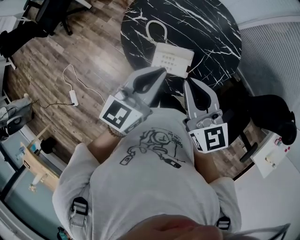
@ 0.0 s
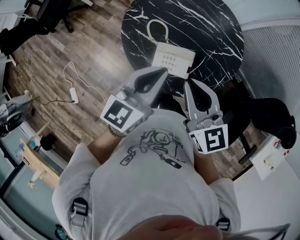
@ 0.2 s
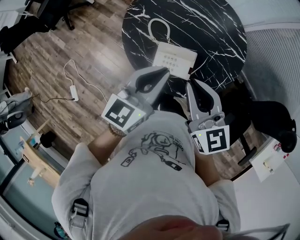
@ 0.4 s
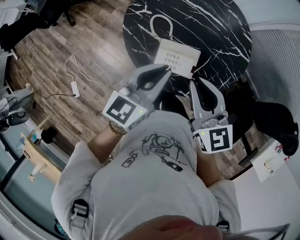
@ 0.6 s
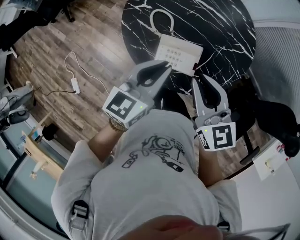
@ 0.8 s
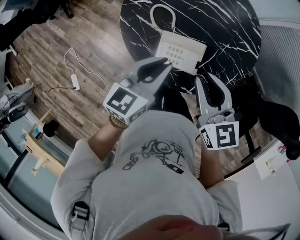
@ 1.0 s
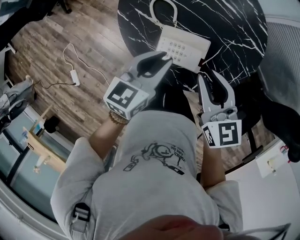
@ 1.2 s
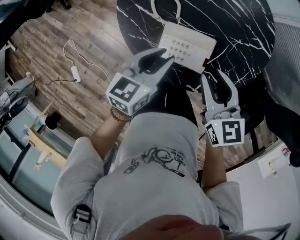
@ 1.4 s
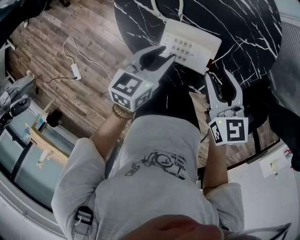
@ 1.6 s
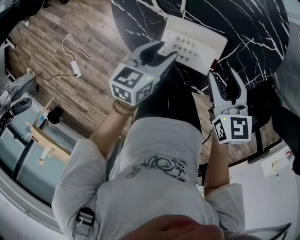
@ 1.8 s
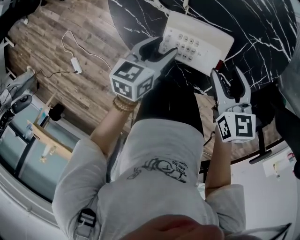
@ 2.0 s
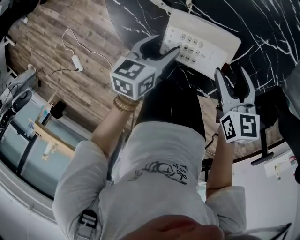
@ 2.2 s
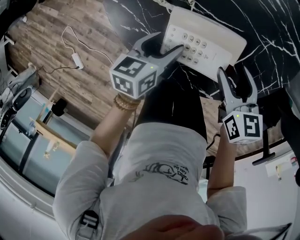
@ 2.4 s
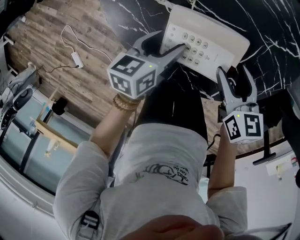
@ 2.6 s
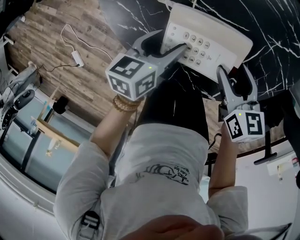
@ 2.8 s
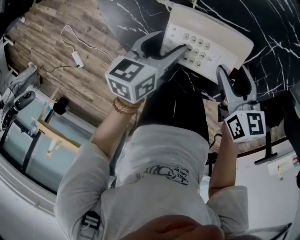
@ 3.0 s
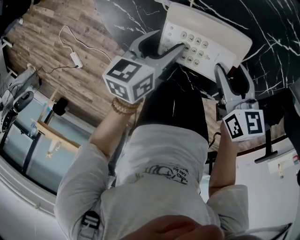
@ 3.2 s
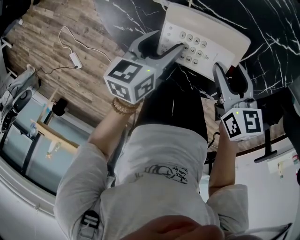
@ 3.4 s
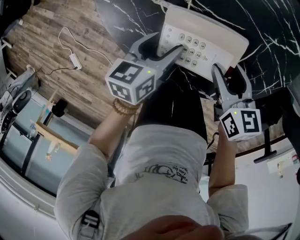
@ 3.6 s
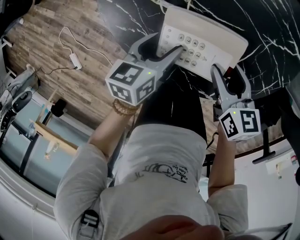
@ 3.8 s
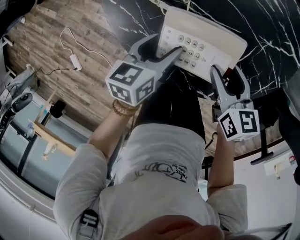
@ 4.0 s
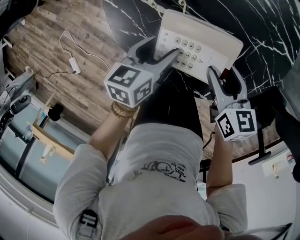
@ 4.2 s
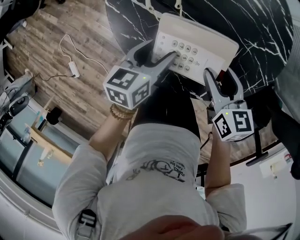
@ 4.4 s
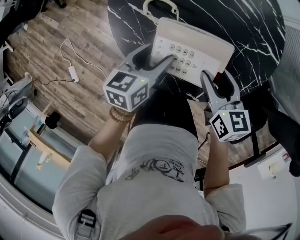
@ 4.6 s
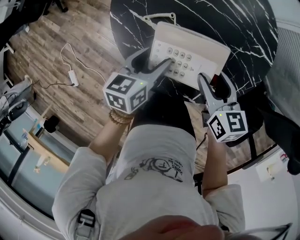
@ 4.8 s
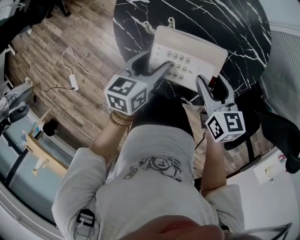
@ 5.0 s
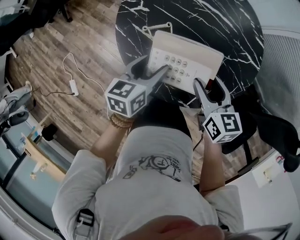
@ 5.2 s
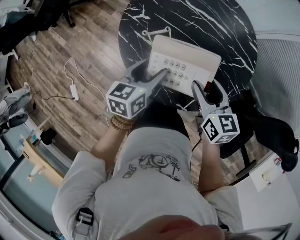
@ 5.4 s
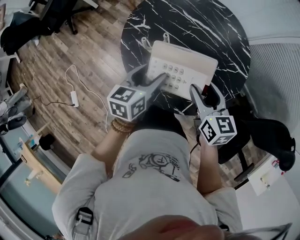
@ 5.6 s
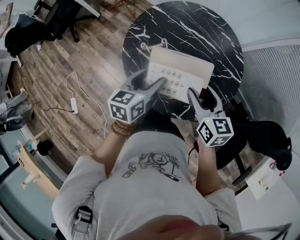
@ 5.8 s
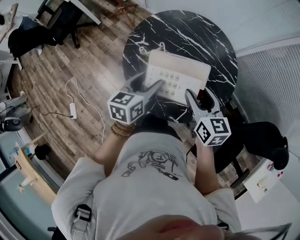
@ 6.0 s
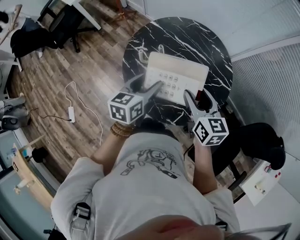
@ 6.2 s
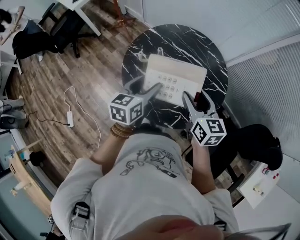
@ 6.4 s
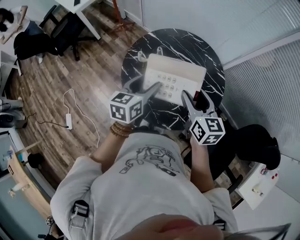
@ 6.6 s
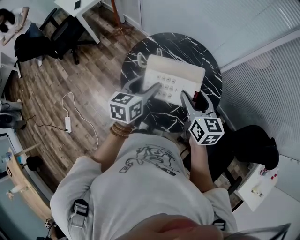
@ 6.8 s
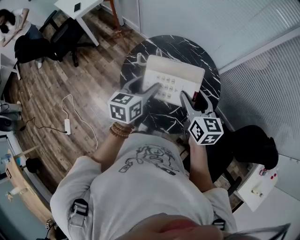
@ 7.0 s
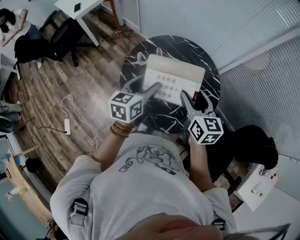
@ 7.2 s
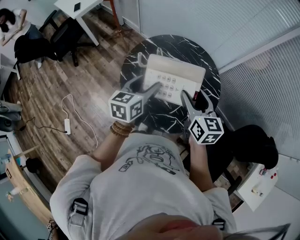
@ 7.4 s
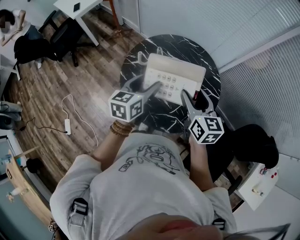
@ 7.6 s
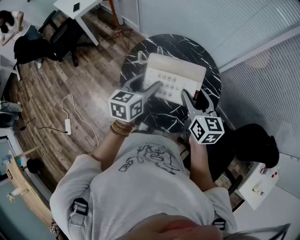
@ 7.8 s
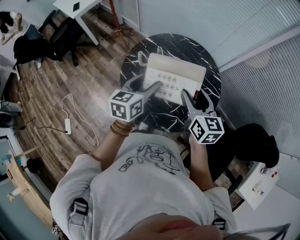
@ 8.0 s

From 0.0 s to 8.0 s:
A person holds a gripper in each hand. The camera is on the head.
From 0.0 s to 1.6 s: Both grippers move downward, roughly 25 cm. The right gripper swivels some 20 degrees, and opens up. The left gripper changes its angle by approximately 30 degrees, and opens up.
From 1.6 s to 3.2 s: The two grippers go approximately 15 cm downward. The left gripper opens.
From 3.2 s to 4.8 s: The two grippers go roughly 15 cm upward.
From 4.8 s to 6.4 s: Both grippers travel together upward, some 25 cm.
From 6.4 s to 8.0 s: The right gripper moves upward, about 5 cm.

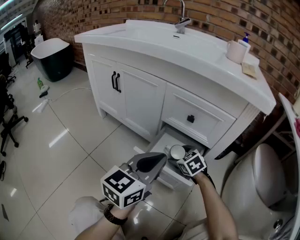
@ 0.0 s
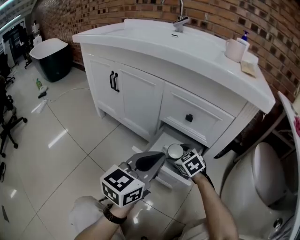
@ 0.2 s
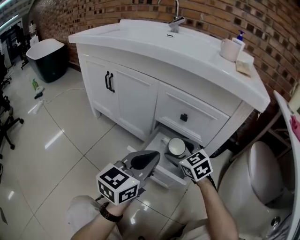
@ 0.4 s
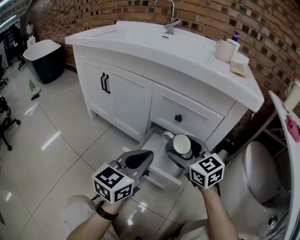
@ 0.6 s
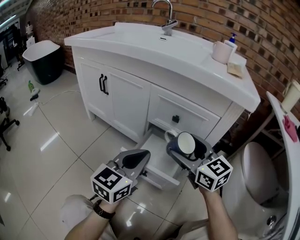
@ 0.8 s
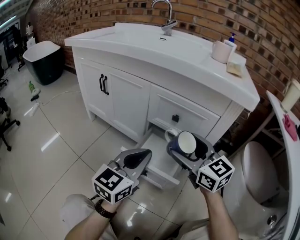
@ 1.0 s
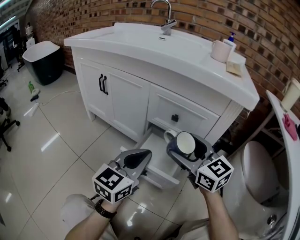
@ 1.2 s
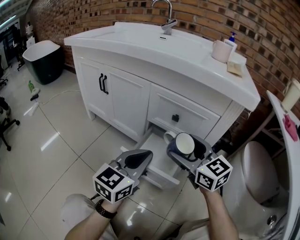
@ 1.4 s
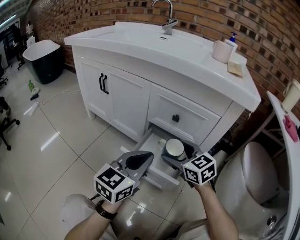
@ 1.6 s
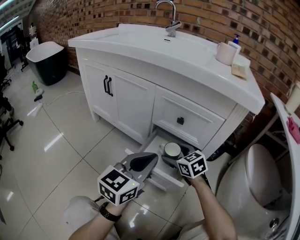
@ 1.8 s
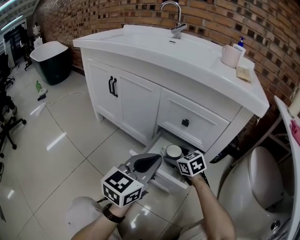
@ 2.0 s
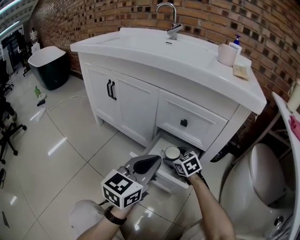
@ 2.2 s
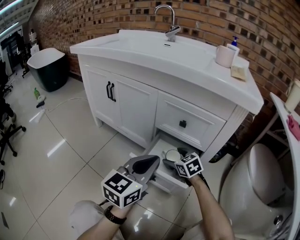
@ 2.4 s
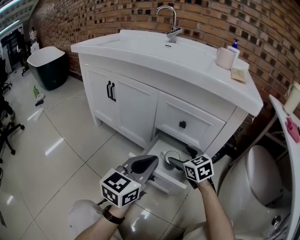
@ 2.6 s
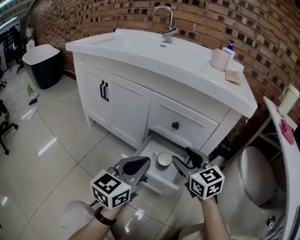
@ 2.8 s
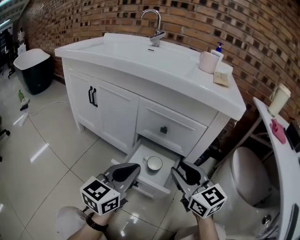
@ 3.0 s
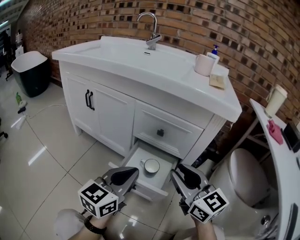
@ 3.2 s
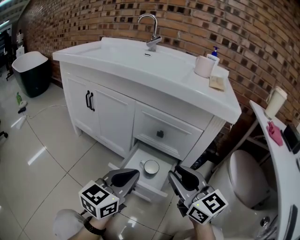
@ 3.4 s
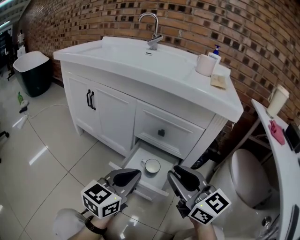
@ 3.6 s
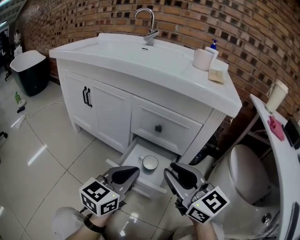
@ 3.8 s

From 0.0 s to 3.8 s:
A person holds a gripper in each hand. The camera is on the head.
From 0.0 s to 1.2 s: The right gripper goes some 25 cm upward, and tips its fingers upward by about 40 degrees.
From 1.2 s to 2.6 s: The right gripper goes some 15 cm downward and forward, and rotates about 20 degrees.
From 2.6 s to 3.8 s: The right gripper travels upward and backward by about 20 cm, tips its fingers upward by some 30 degrees, and closes.

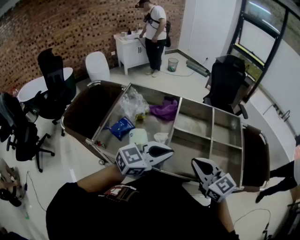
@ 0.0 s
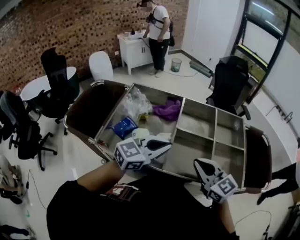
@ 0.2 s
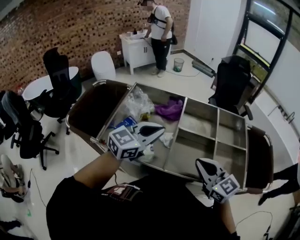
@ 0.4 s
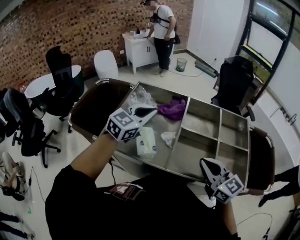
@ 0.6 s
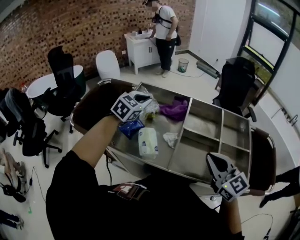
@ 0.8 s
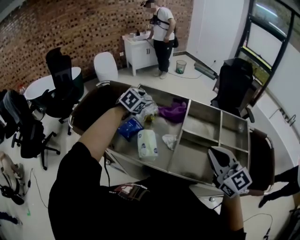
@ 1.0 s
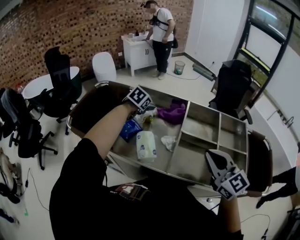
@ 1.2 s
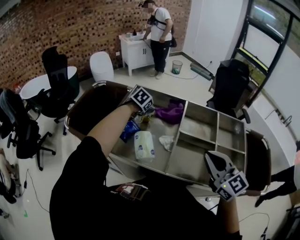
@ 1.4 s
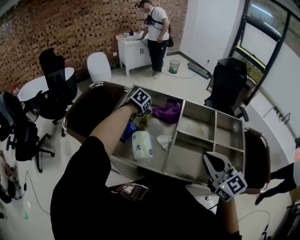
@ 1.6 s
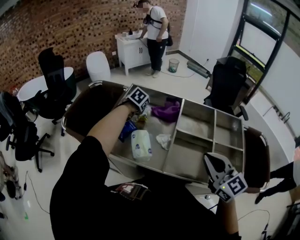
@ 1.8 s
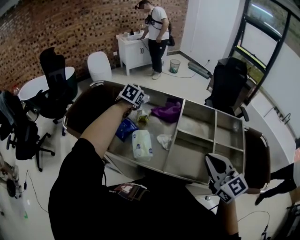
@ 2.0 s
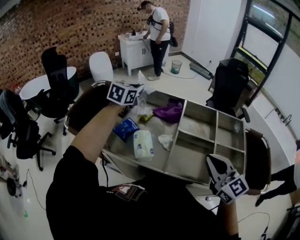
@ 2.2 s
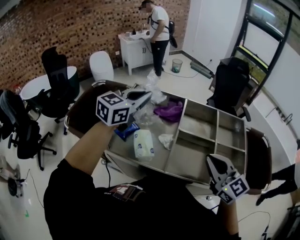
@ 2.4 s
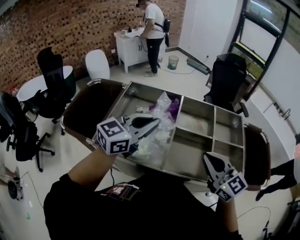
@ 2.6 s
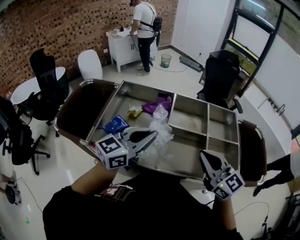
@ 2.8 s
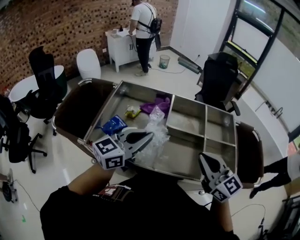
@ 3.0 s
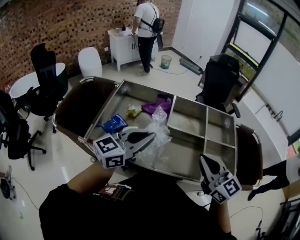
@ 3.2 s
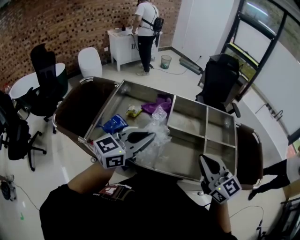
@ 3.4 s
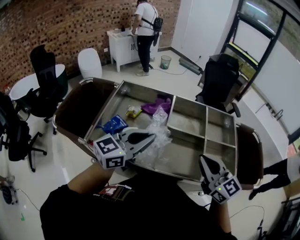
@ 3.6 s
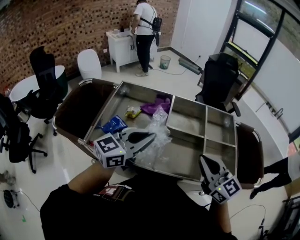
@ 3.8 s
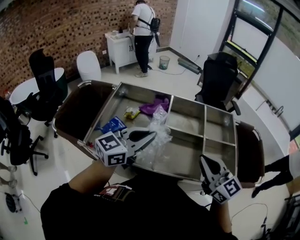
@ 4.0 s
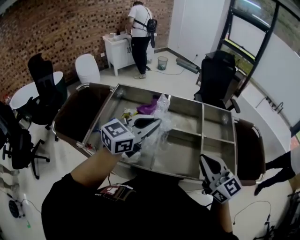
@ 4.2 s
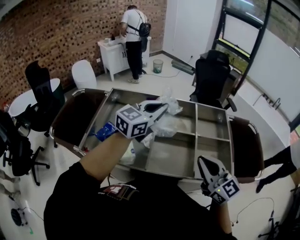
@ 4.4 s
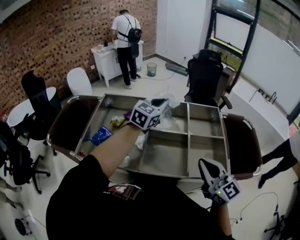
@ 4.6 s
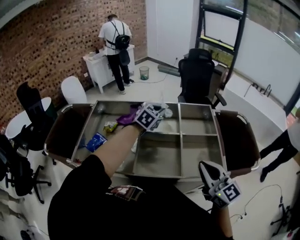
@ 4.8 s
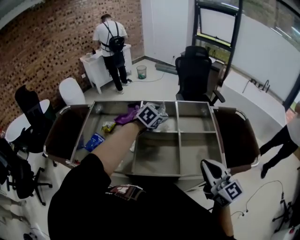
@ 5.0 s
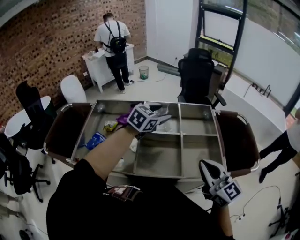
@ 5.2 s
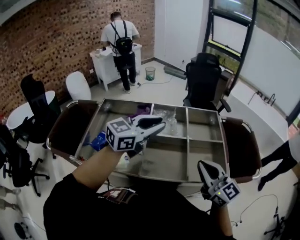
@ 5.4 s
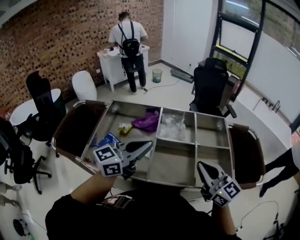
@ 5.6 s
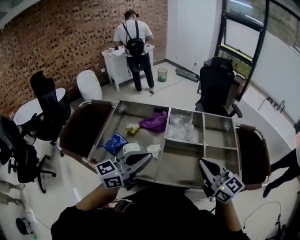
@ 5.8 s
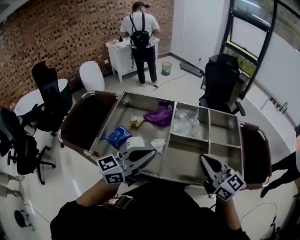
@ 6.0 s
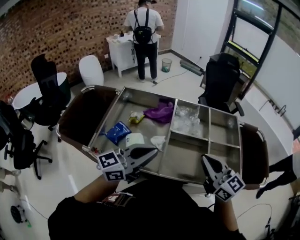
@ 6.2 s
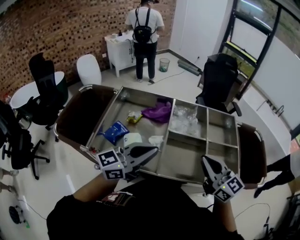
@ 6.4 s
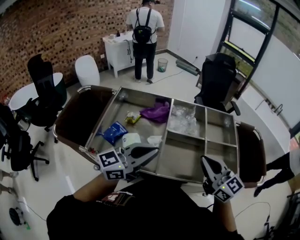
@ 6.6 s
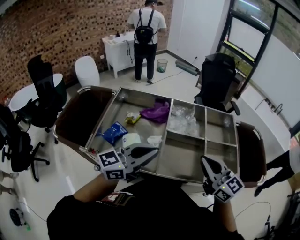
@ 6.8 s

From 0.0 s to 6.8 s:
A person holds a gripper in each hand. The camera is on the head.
From 0.0 s to 1.4 s: The left gripper travels forward and to the left by roughly 35 cm, tilts its fingers roughly 50 degrees downward, and opens its fingers; the right gripper is displaced upward by roughly 5 cm.
From 1.4 s to 2.8 s: The left gripper goes some 30 cm backward and upward, points its fingers some 60 degrees further upward, and closes up.
From 2.8 s to 4.0 s: The grippers stay close to where they were, moving slightly.
From 4.0 s to 5.4 s: Both grippers move to the right, roughly 10 cm. The left gripper travels forward and back again, about 25 cm each way, and opens, then closes once more.
From 5.4 s to 6.8 s: The right gripper heads to the left, covering some 5 cm. Meanwhile the left gripper goes approximately 15 cm backward and to the left.

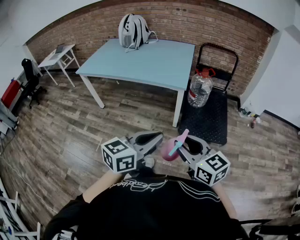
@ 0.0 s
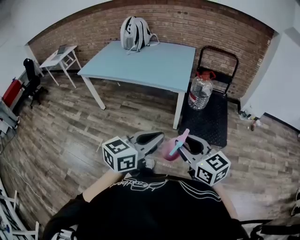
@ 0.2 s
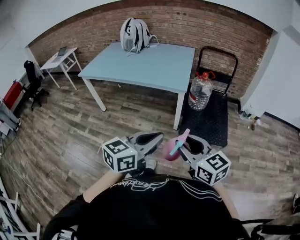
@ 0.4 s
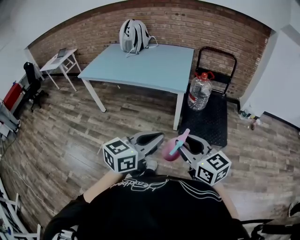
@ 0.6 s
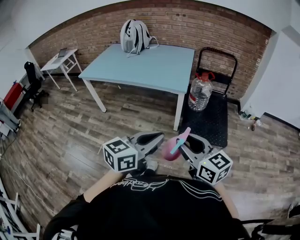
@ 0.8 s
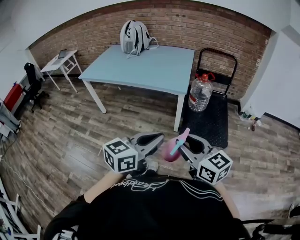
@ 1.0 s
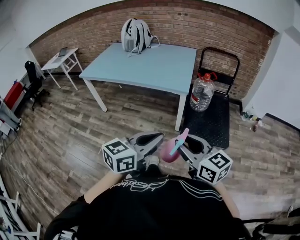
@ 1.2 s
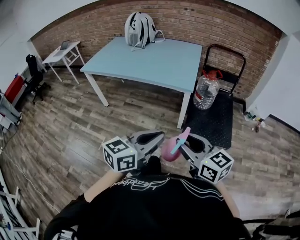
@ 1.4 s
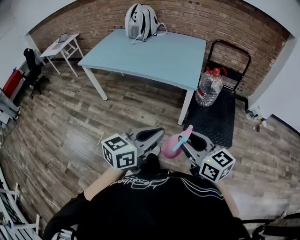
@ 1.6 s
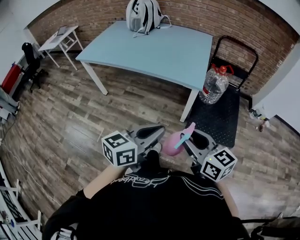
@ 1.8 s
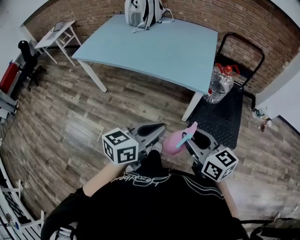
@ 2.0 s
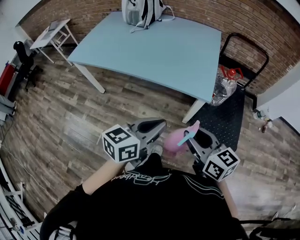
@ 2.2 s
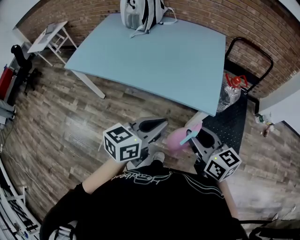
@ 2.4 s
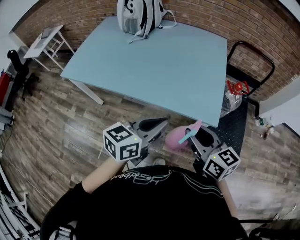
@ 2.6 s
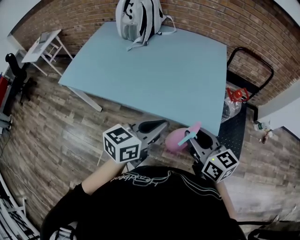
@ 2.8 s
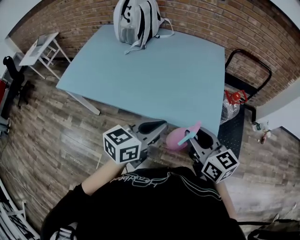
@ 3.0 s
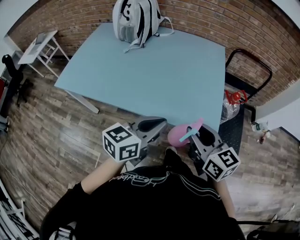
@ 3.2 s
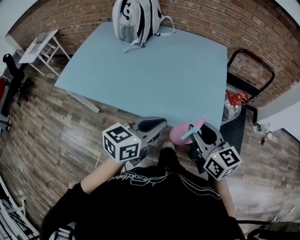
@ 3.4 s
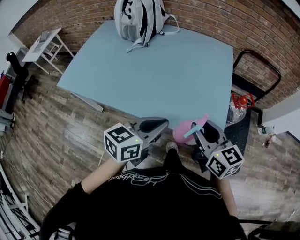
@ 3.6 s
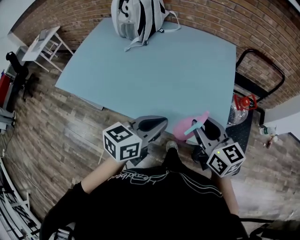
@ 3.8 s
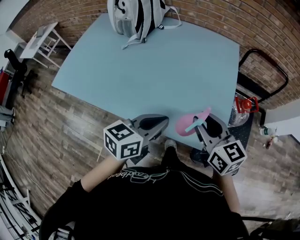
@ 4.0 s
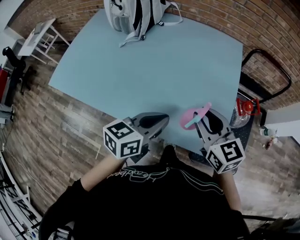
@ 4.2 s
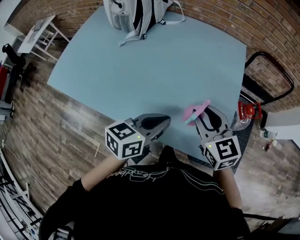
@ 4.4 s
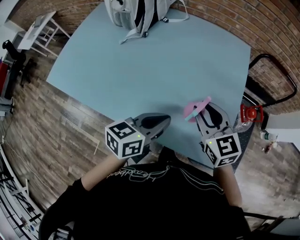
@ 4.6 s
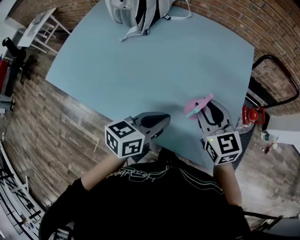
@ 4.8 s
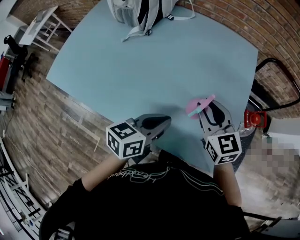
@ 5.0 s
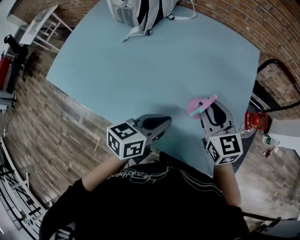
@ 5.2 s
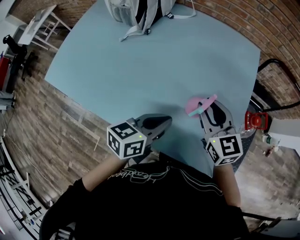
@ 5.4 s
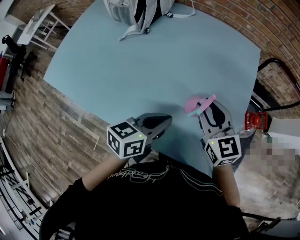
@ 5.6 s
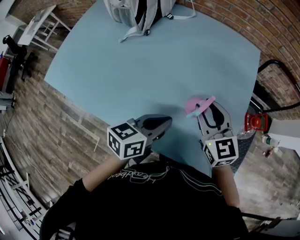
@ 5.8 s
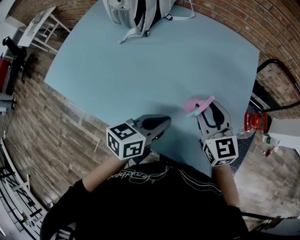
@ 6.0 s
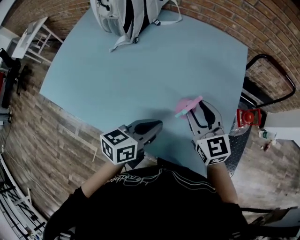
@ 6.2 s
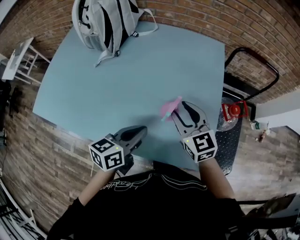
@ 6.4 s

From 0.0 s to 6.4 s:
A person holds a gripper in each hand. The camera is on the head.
From 0.0 s to 1.6 s: The two grippers go approximately 5 cm forward.
From 1.6 s to 3.2 s: Both grippers are carried forward, some 50 cm.
From 3.2 s to 4.8 s: The right gripper moves forward, approximately 25 cm. The left gripper goes about 20 cm forward and downward.
From 4.8 s to 6.4 s: The grippers make only small movements.
